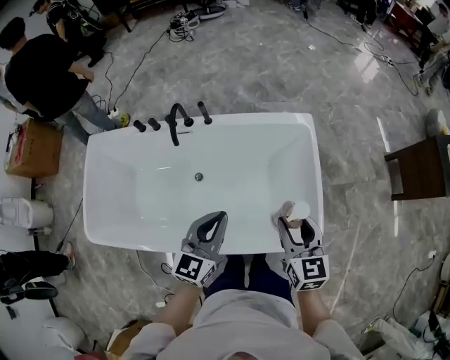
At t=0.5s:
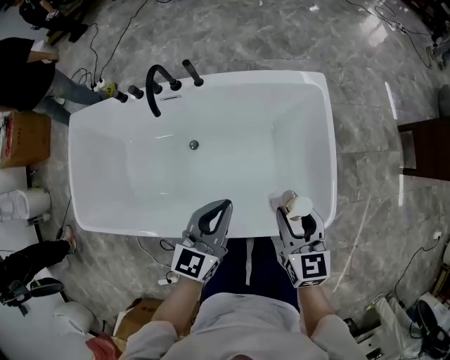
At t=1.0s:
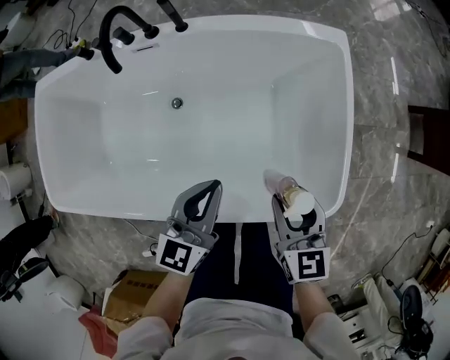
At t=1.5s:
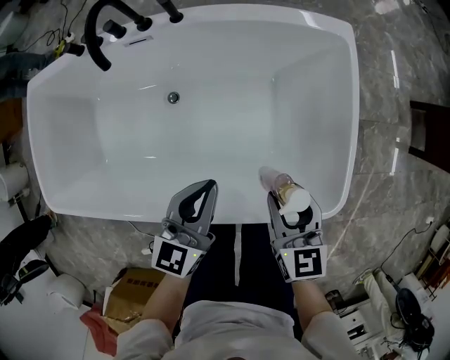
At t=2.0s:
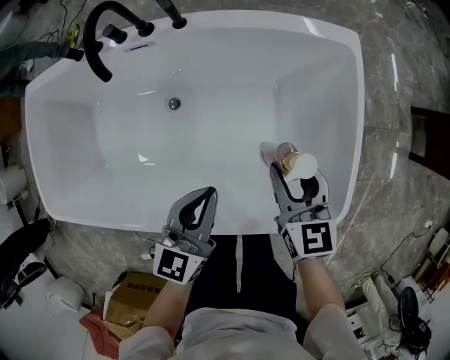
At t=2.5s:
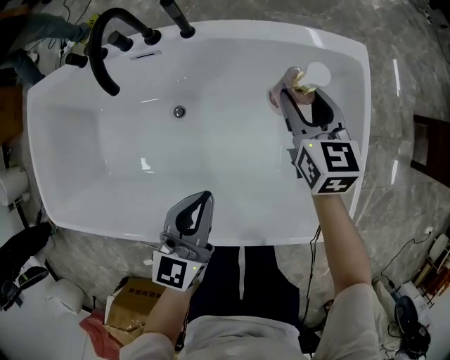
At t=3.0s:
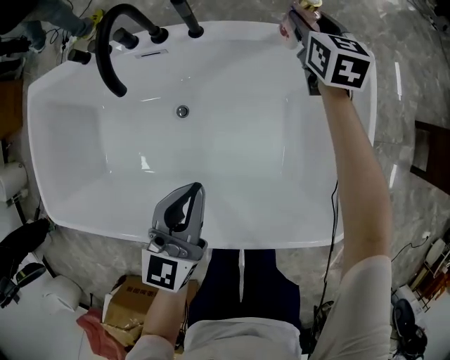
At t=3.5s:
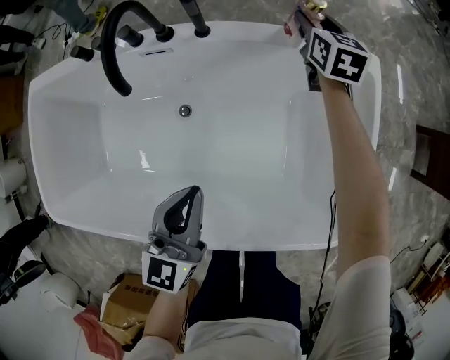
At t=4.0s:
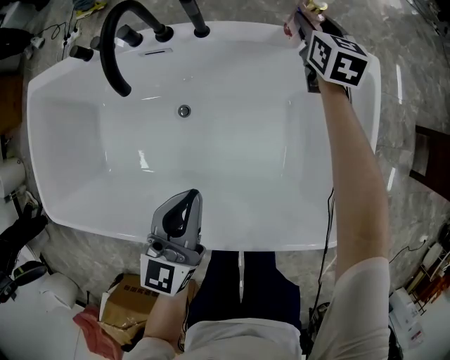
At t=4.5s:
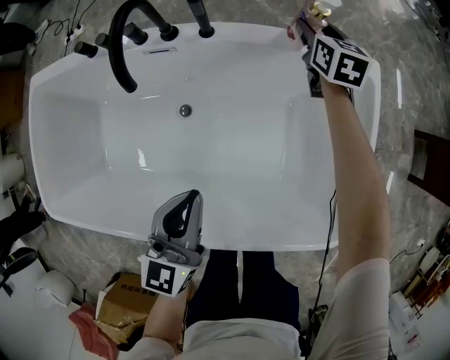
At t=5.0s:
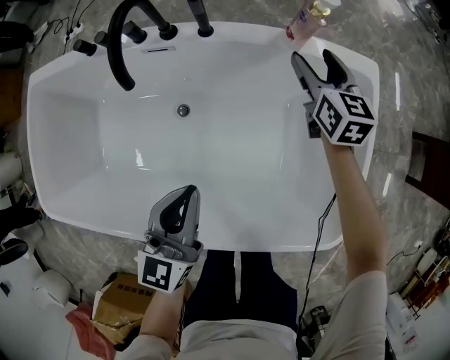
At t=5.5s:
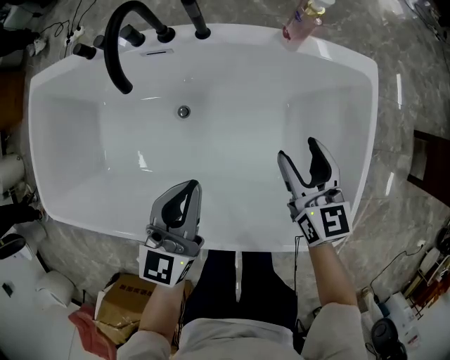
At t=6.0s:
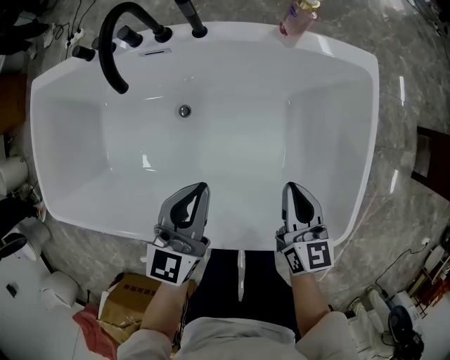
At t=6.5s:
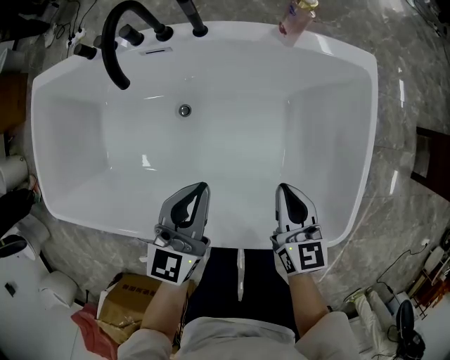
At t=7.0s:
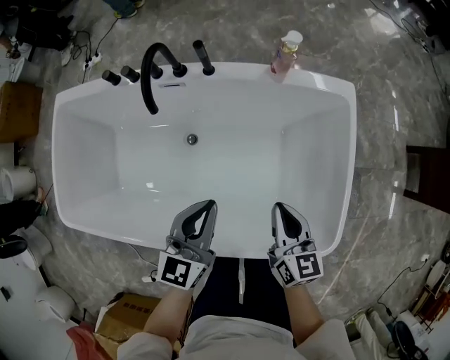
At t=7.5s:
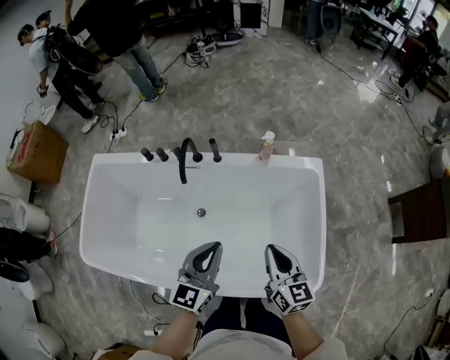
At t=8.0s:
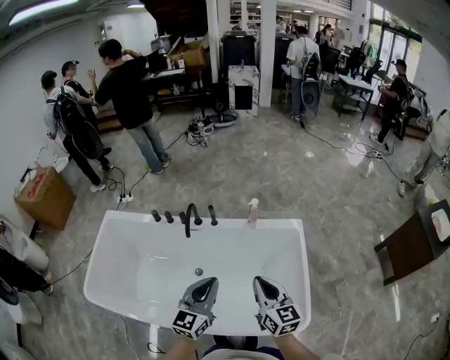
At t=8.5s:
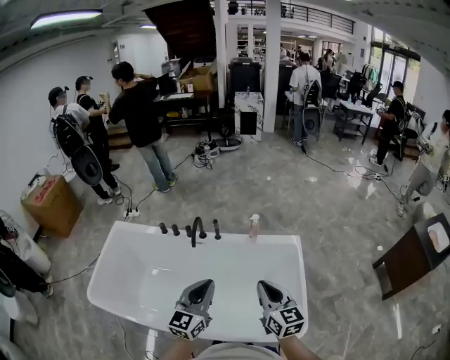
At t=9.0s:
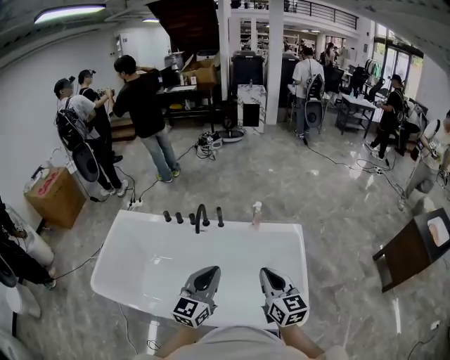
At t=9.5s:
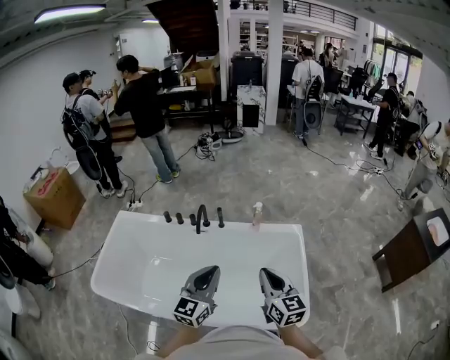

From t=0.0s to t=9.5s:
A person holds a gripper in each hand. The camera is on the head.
From t=0.0s to t=2.0s: The right gripper travels downward and forward by about 30 cm. The left gripper shifts some 25 cm downward.
From t=2.0s to t=4.0s: The left gripper travels to the left and forward by approximately 10 cm. The right gripper is displaced forward by roughly 40 cm.
From t=4.0s to t=5.5s: The right gripper shifts some 30 cm backward.
From t=5.5s to t=7.5s: The right gripper goes approximately 25 cm upward and backward, and closes; the left gripper is displaced upward by roughly 20 cm.
From t=7.5s to t=9.5s: The grippers both shift upward and backward by roughly 20 cm.

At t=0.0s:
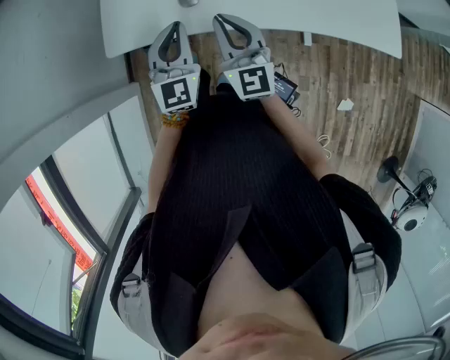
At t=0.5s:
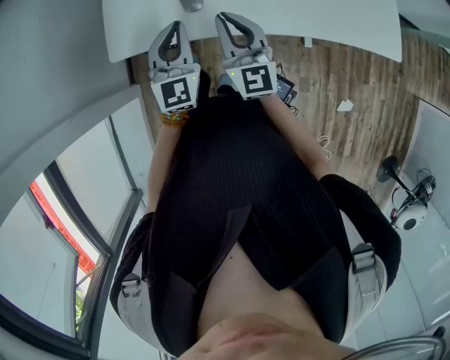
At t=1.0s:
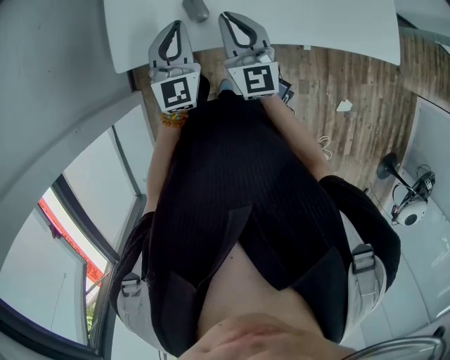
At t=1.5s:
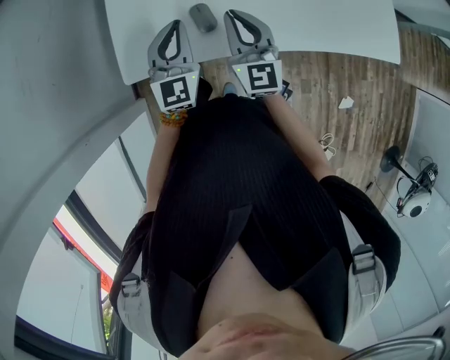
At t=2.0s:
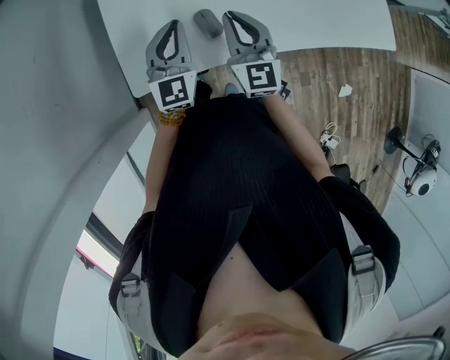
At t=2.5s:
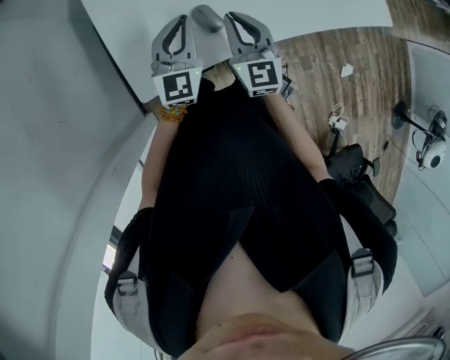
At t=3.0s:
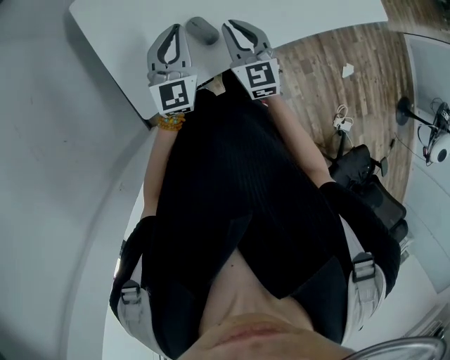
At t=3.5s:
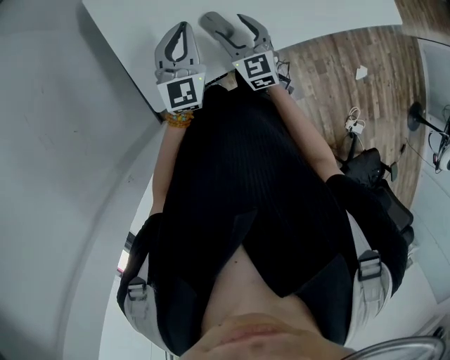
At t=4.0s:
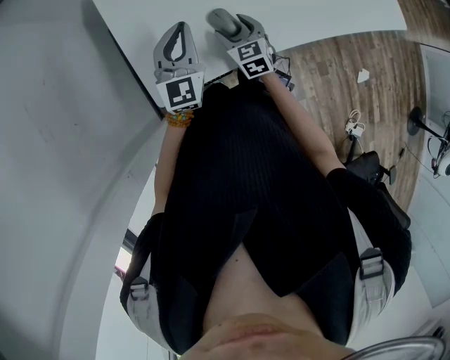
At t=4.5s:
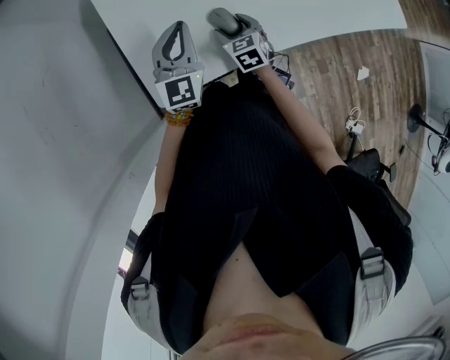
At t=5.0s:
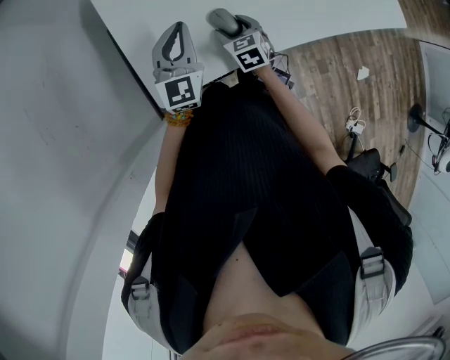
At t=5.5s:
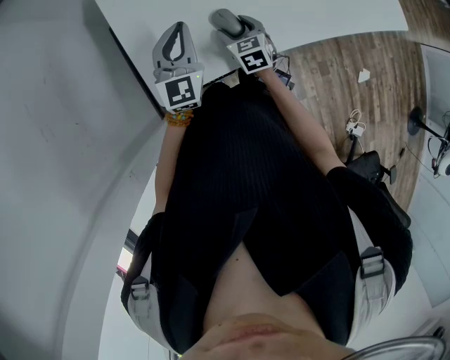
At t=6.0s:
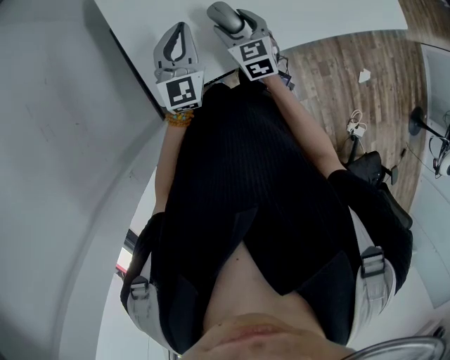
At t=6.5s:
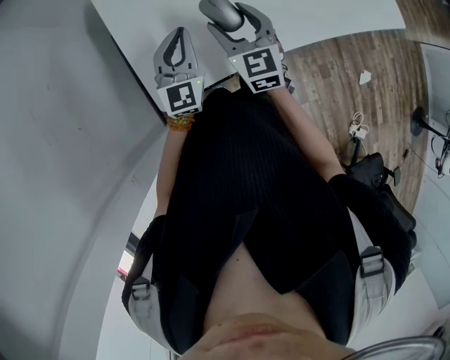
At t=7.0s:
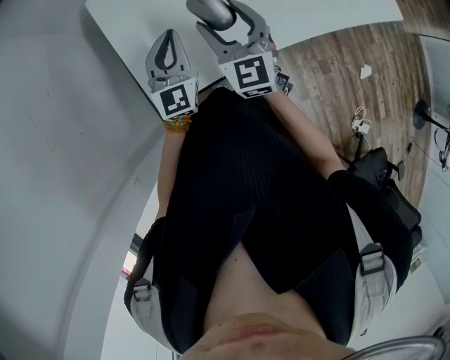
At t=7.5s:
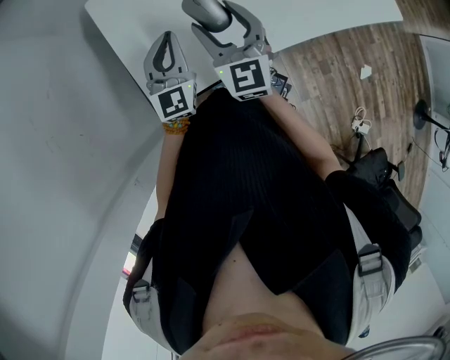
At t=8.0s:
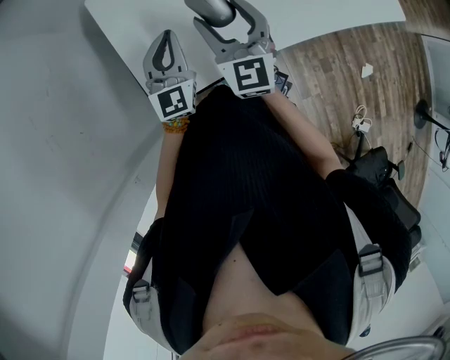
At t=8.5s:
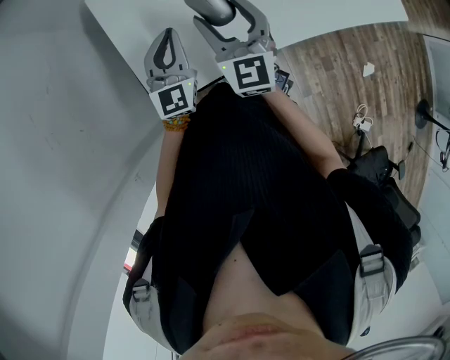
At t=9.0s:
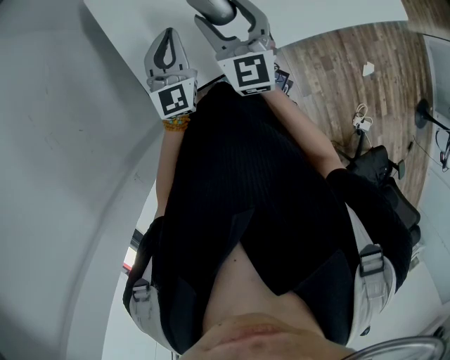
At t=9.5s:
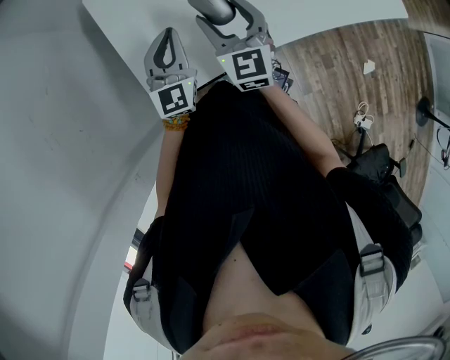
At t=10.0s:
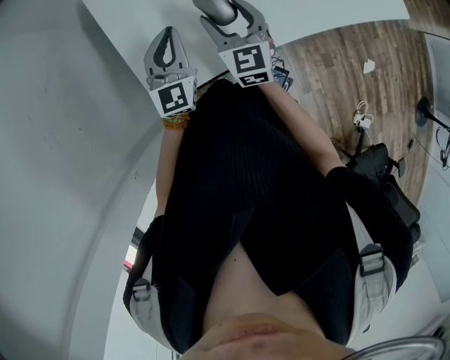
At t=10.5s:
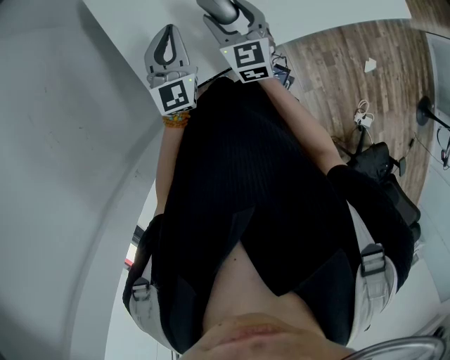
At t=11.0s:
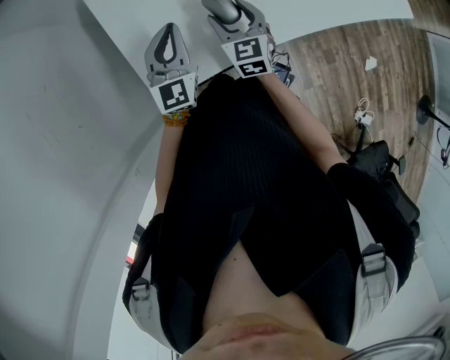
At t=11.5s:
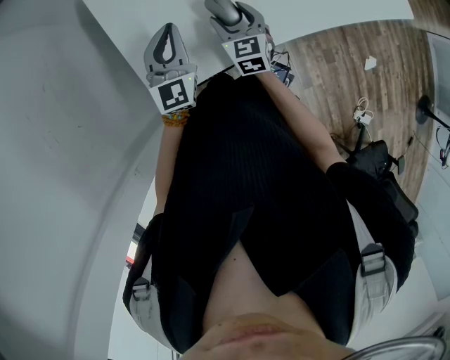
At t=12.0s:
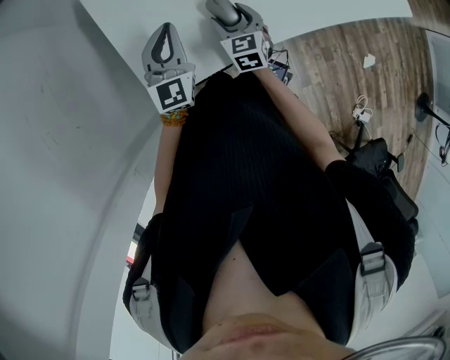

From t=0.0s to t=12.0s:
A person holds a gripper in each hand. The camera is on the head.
From t=0.0s to t=2.0s: Both grippers travel together forward and to the left, roughly 15 cm.
From t=2.0s to t=4.0s: The right gripper goes some 20 cm downward, changes its angle by about 30 degrees, and opens.
From t=4.0s to t=6.0s: The right gripper travels upward by some 5 cm.
From t=6.0s to t=8.0s: The right gripper goes roughly 15 cm upward, and swivels roughly 30 degrees.
From t=8.0s to t=10.0s: The right gripper is displaced downward by about 5 cm.
From t=10.0s to t=12.0s: The right gripper shifts approximately 15 cm downward.

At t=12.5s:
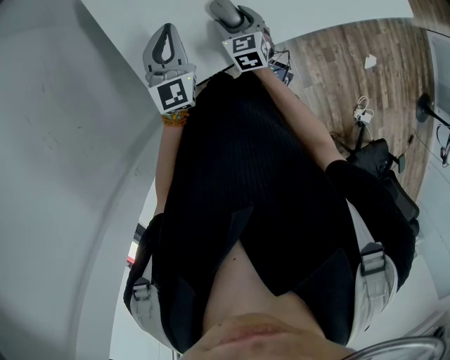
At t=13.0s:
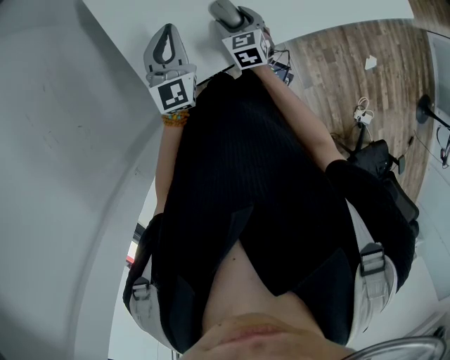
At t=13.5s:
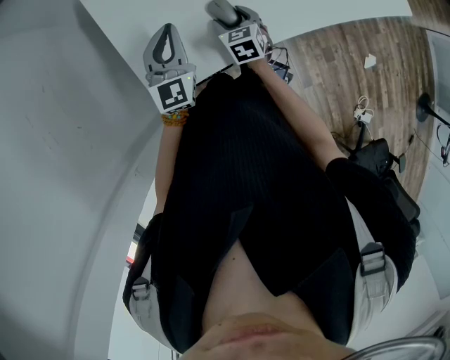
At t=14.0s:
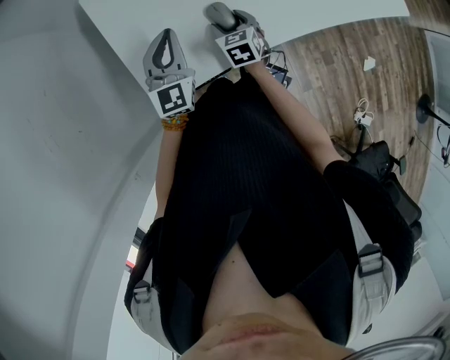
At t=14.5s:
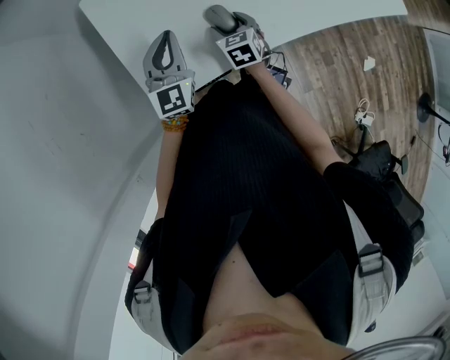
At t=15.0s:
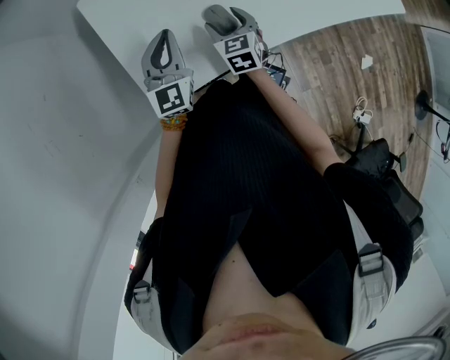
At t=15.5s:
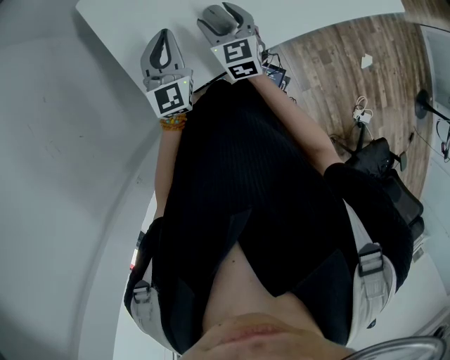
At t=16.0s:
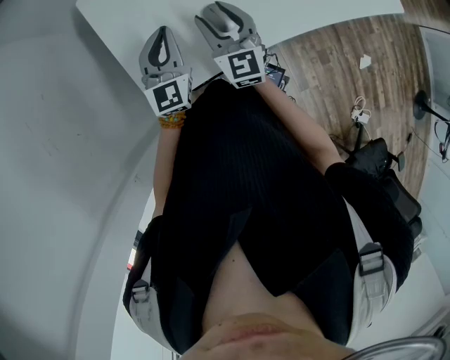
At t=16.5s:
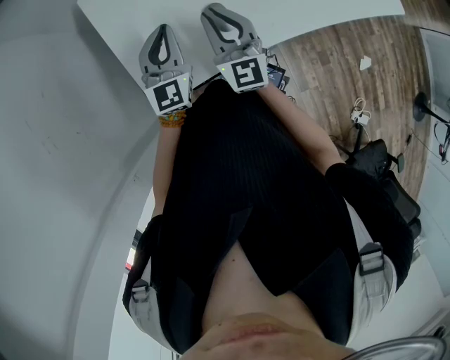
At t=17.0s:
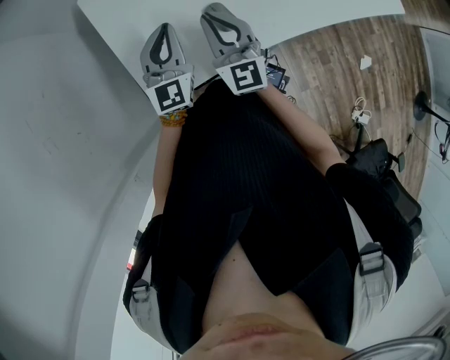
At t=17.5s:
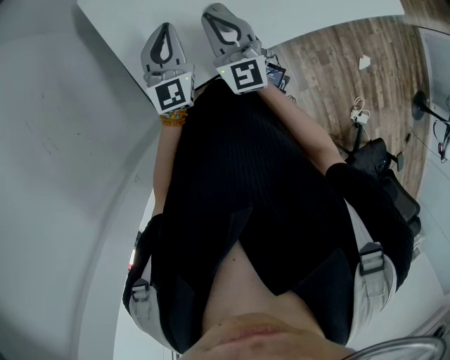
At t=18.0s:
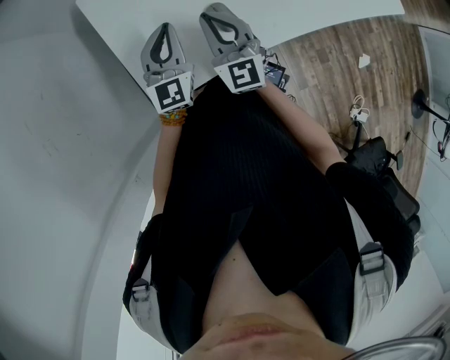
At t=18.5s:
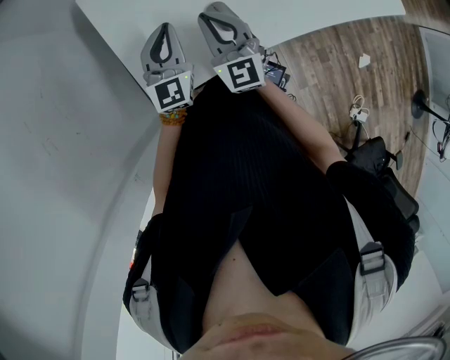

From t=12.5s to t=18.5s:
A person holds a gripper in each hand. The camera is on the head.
From t=12.5s to t=14.5s: The grippers stay close to where they were, moving slightly.
From t=14.5s to t=16.5s: The right gripper is displaced upward by some 20 cm, tilts its fingers about 40 degrees upward, and closes its fingers.
From t=16.5s to t=18.5s: The grippers make only small movements.
